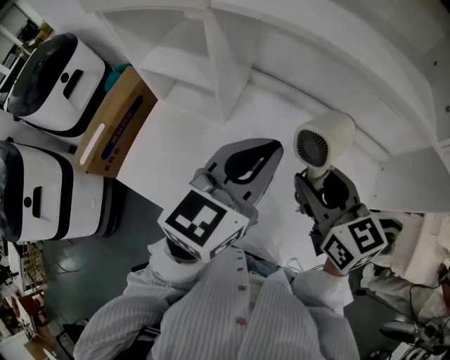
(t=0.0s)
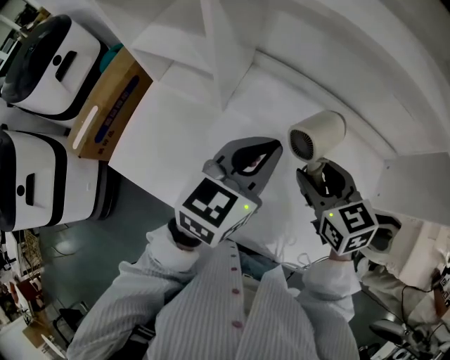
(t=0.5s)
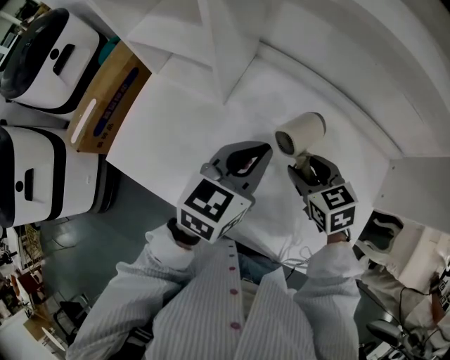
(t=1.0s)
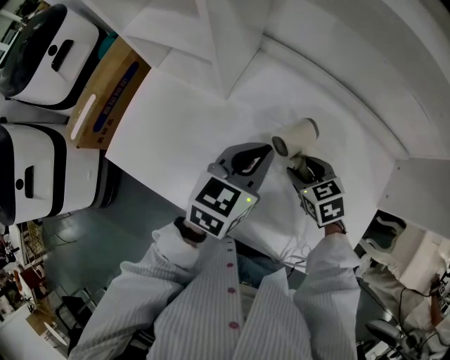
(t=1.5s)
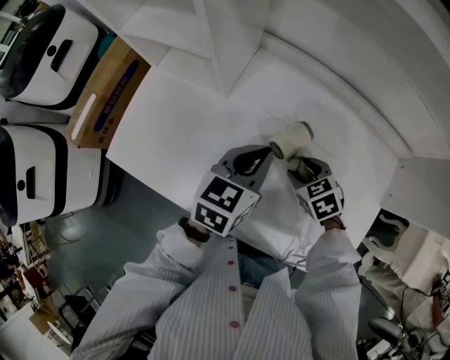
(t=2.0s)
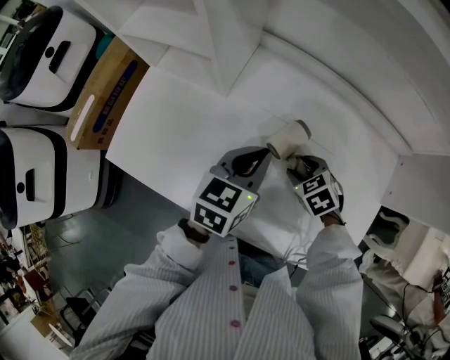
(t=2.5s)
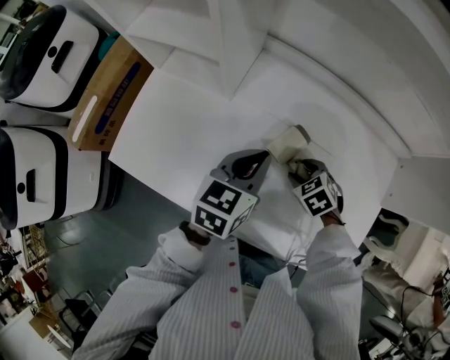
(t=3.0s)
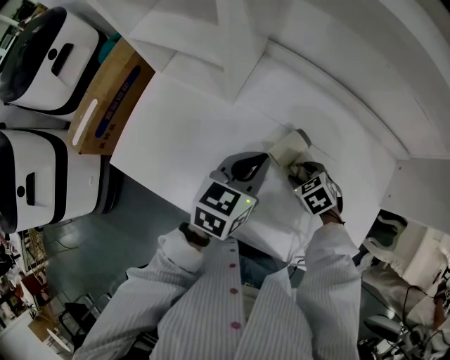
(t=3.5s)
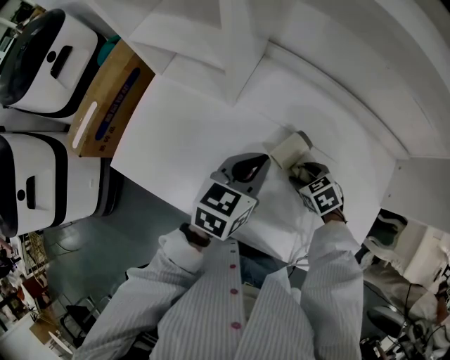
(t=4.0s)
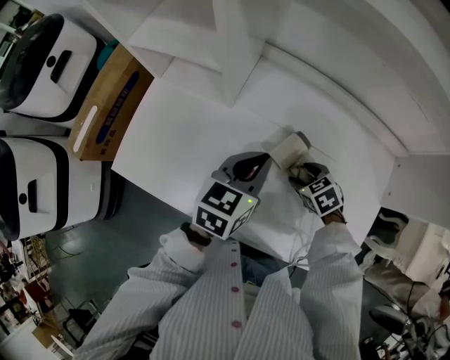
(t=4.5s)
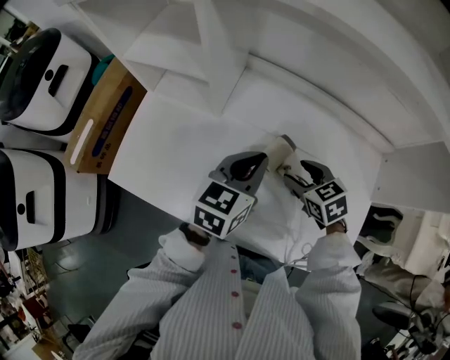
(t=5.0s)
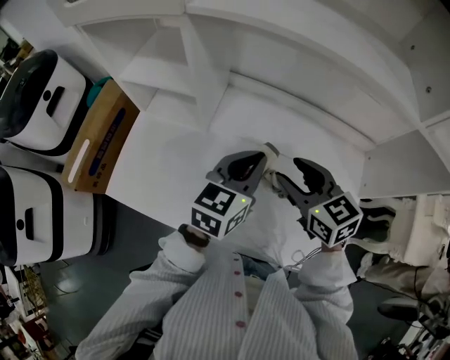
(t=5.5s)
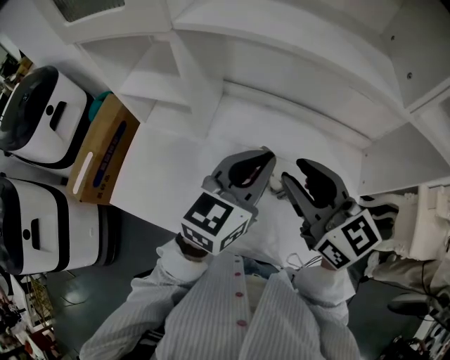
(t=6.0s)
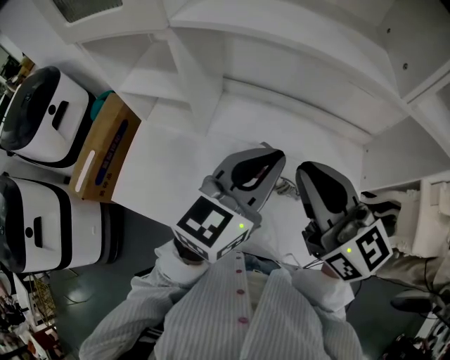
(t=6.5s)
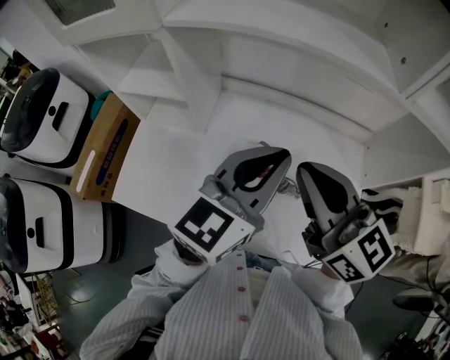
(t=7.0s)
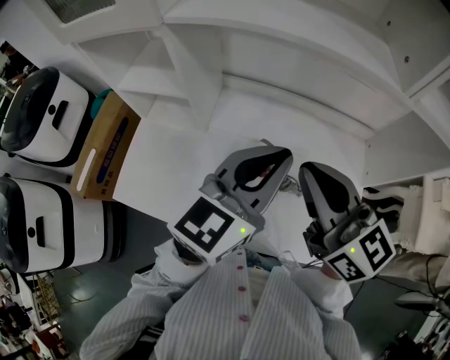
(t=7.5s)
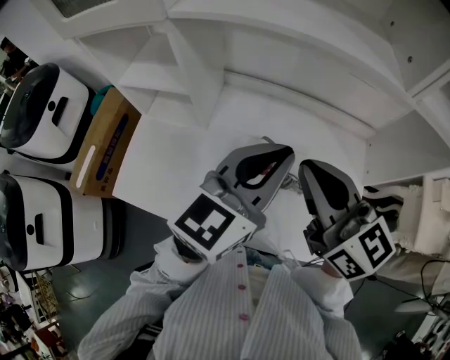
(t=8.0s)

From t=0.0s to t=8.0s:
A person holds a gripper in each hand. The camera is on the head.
From t=0.0s to t=2.0s: The grippers both shift downward by some 25 cm. The right gripper tips its fingers downward by approximately 40 degrees; the left gripper changes its angle by some 20 degrees.
From t=2.0s to t=4.0s: The grippers move only a little.
From t=4.0s to t=6.0s: The right gripper goes approximately 35 cm upward, and tips its fingers upward by about 60 degrees, while the left gripper shifts approximately 20 cm upward, and swivels approximately 30 degrees.
From t=6.0s to t=8.0s: The left gripper shifts about 5 cm upward. Meanwhile the right gripper closes its fingers.

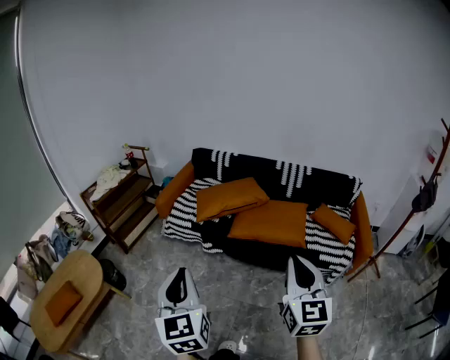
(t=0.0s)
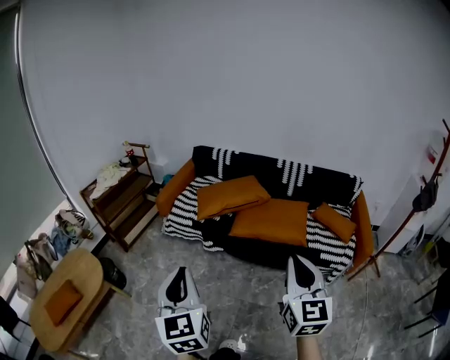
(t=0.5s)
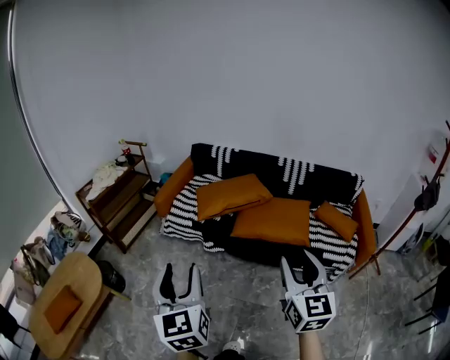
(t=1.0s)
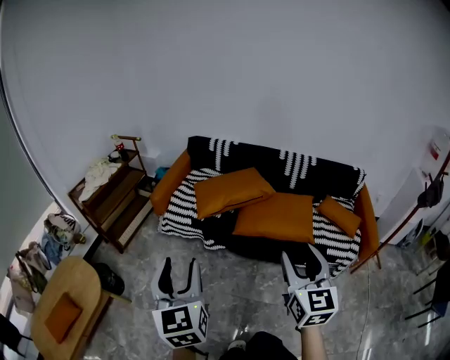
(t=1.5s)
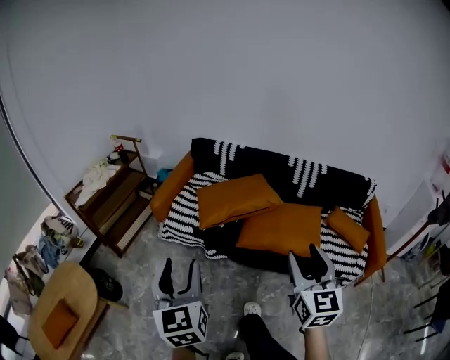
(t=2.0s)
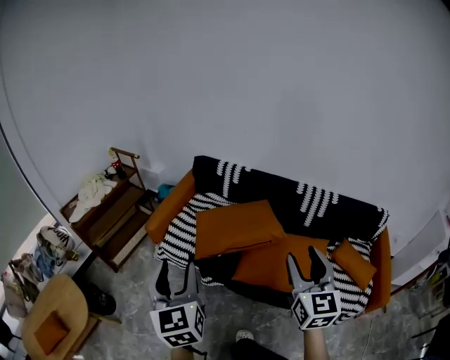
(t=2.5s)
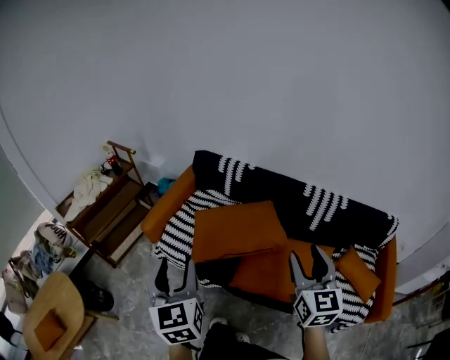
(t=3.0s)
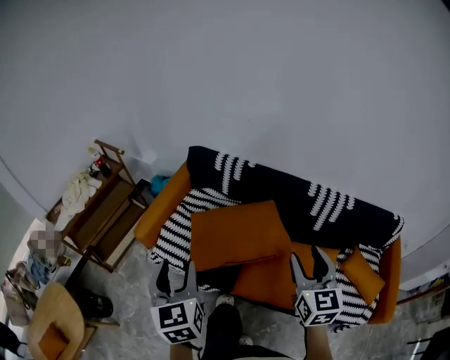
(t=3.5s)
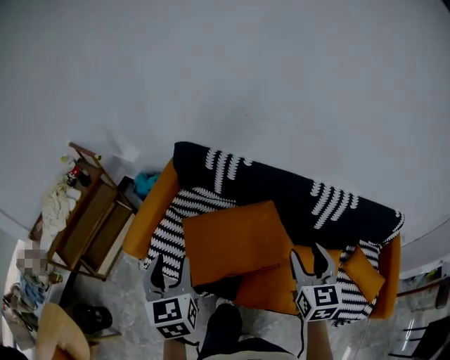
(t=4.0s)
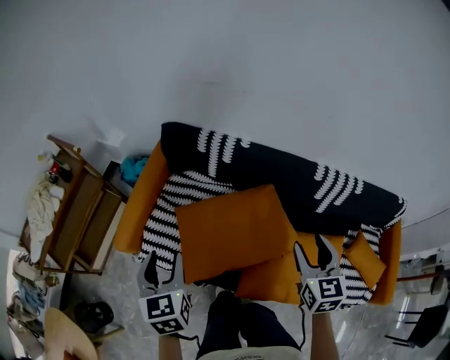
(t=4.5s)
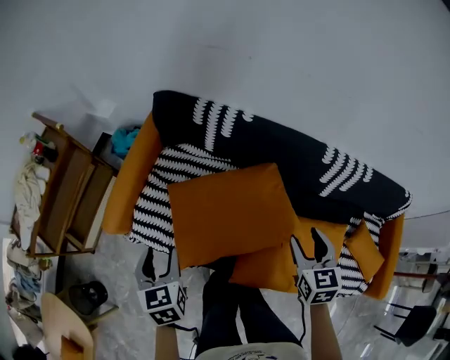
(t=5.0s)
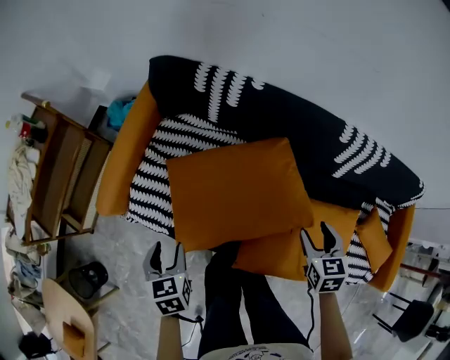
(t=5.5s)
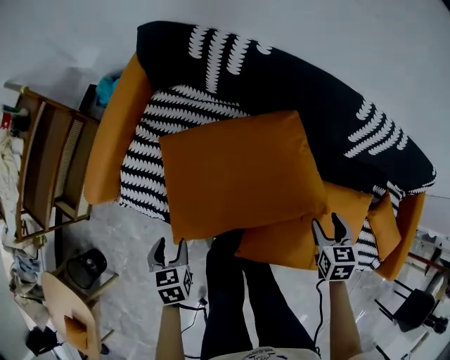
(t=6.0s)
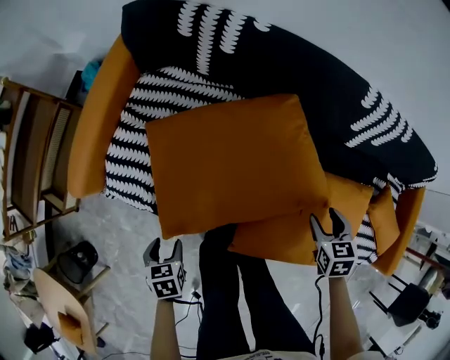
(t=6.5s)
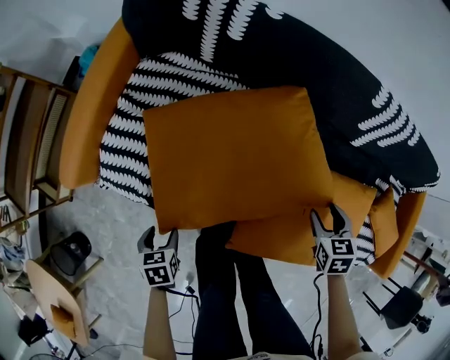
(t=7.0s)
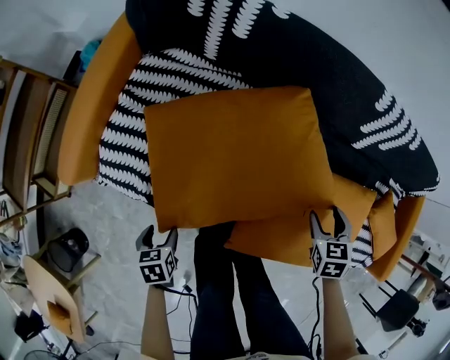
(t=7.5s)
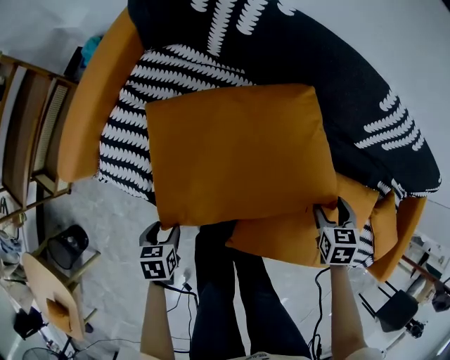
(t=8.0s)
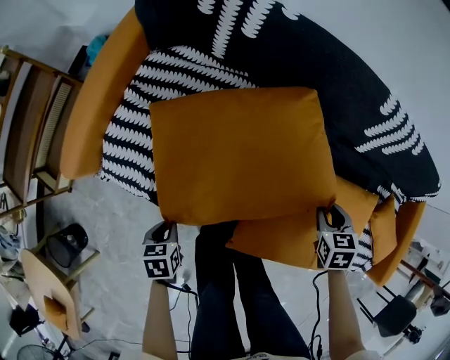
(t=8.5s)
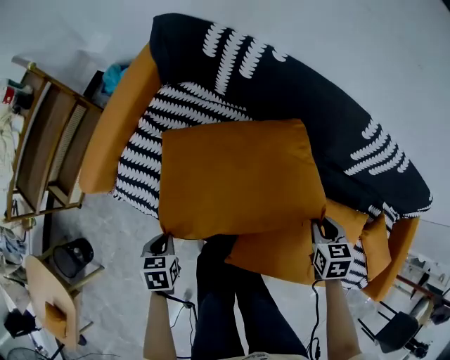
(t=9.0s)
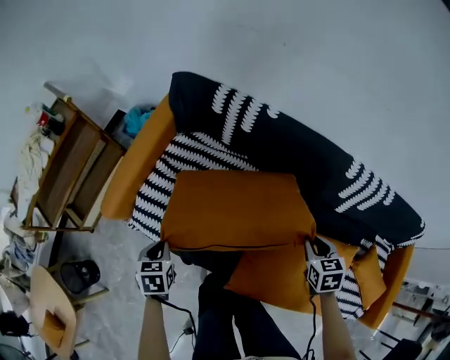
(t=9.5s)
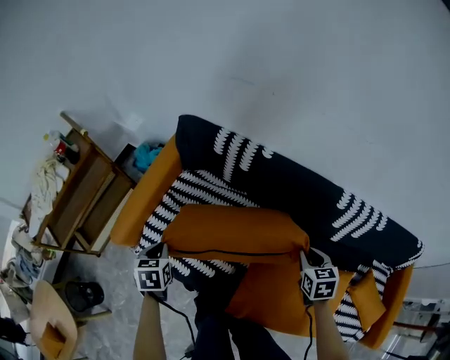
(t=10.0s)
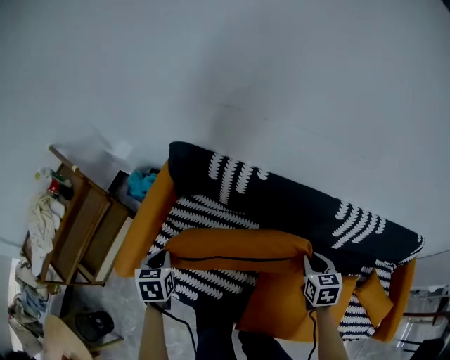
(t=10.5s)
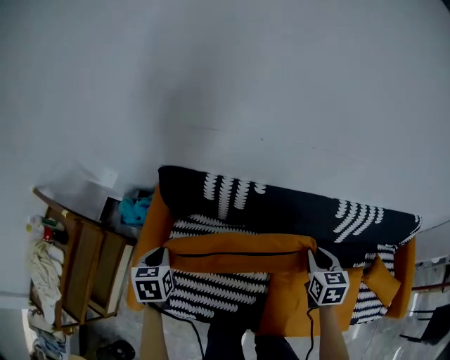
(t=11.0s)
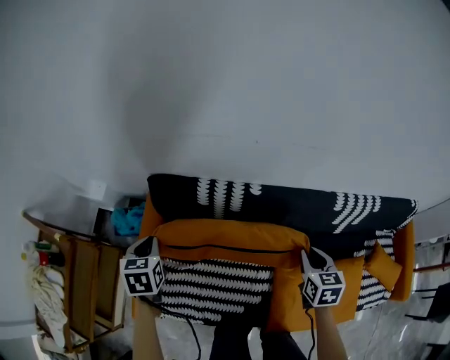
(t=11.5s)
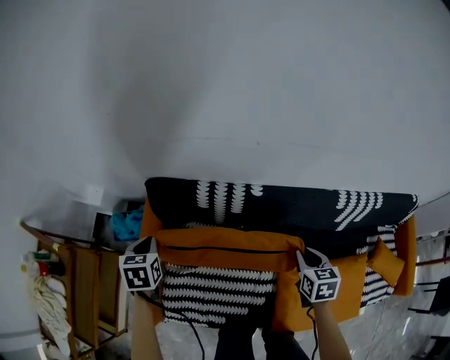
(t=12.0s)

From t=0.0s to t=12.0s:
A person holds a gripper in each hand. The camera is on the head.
From t=0.0s to t=2.0s: The two grippers go about 25 cm forward. The left gripper opens up; the right gripper opens up.
From t=2.0s to t=4.0s: Both grippers are carried forward, some 50 cm.
From t=4.0s to t=6.0s: The two grippers go about 35 cm downward. The left gripper tips its fingers downward by about 40 degrees; the right gripper tips its fingers downward by approximately 40 degrees.
From t=6.0s to t=8.0s: The right gripper is displaced downward by some 5 cm, while the left gripper shifts some 10 cm downward.
From t=8.0s to t=10.0s: The right gripper heads upward, covering roughly 15 cm, and closes its fingers. Meanwhile the left gripper heads upward, covering approximately 25 cm, swivels approximately 20 degrees, and closes its fingers.
From t=10.0s to t=12.0s: The right gripper shifts approximately 15 cm forward and to the left, and swivels roughly 20 degrees, while the left gripper travels forward by about 30 cm, and turns by about 20 degrees.

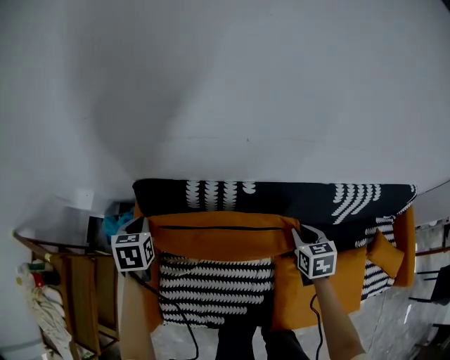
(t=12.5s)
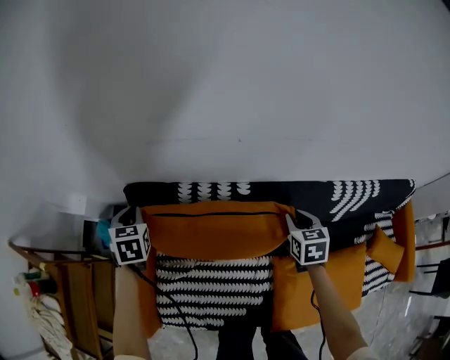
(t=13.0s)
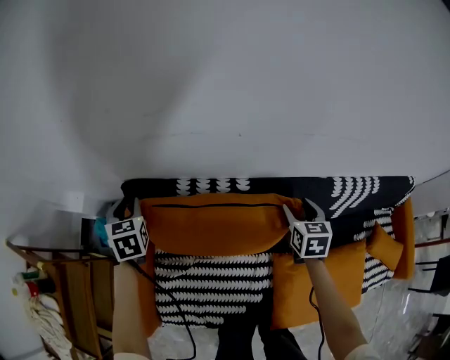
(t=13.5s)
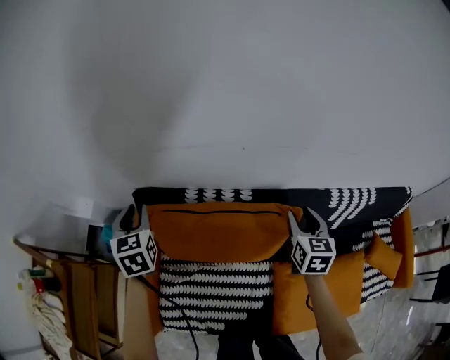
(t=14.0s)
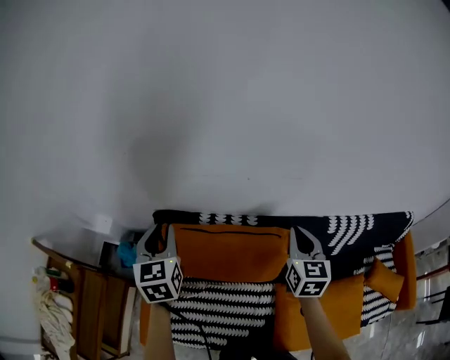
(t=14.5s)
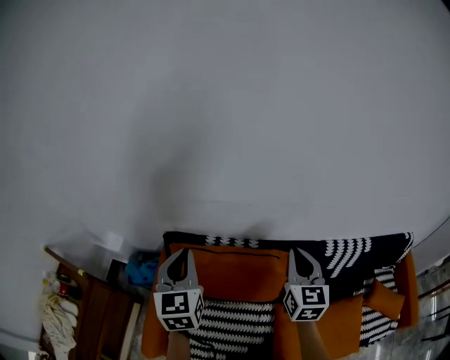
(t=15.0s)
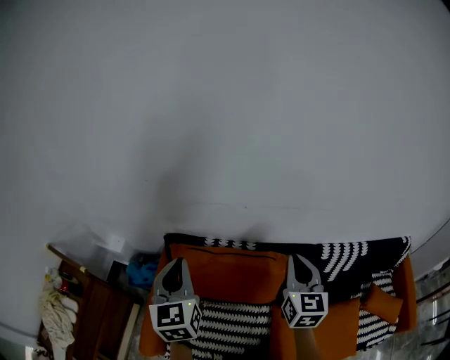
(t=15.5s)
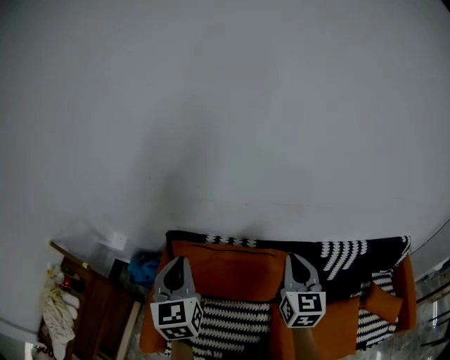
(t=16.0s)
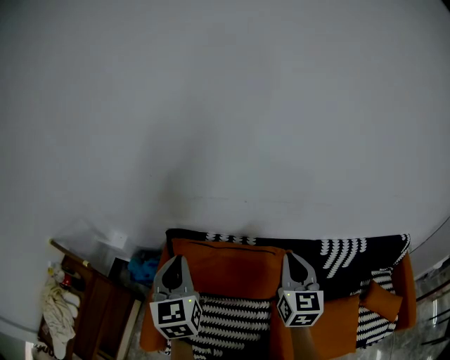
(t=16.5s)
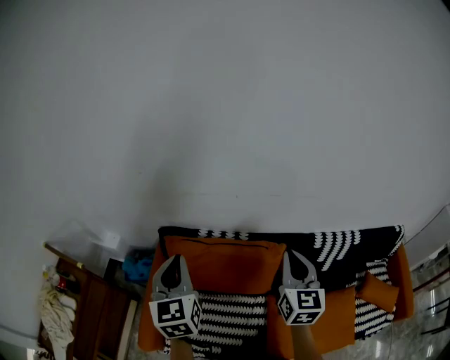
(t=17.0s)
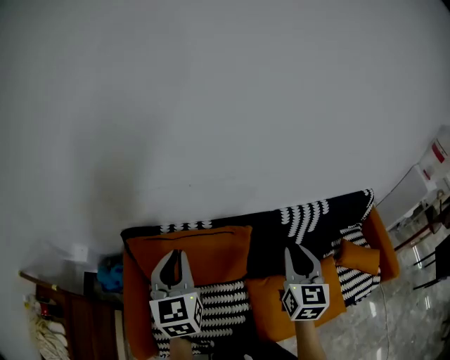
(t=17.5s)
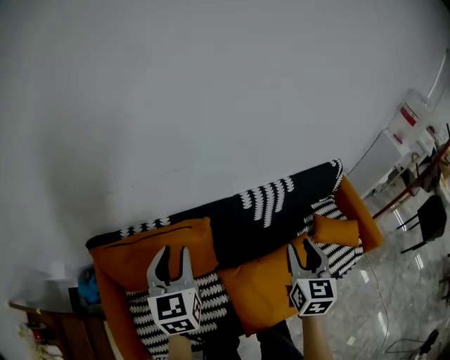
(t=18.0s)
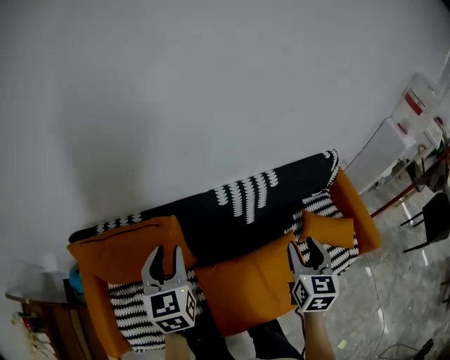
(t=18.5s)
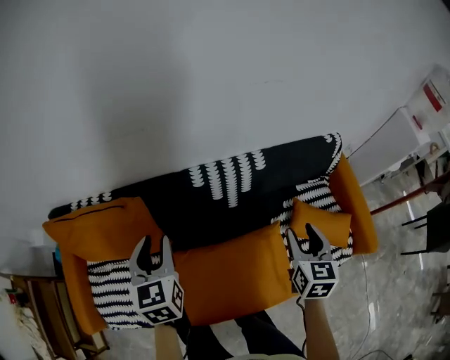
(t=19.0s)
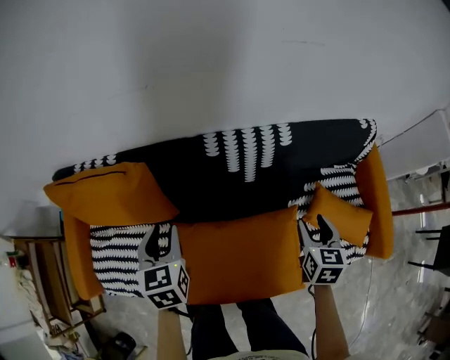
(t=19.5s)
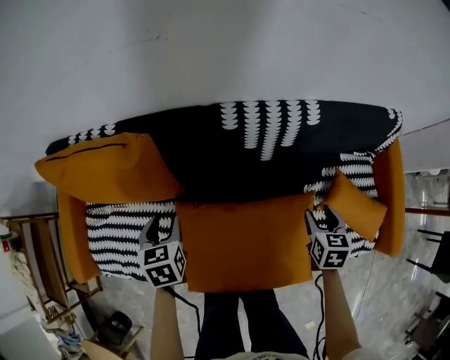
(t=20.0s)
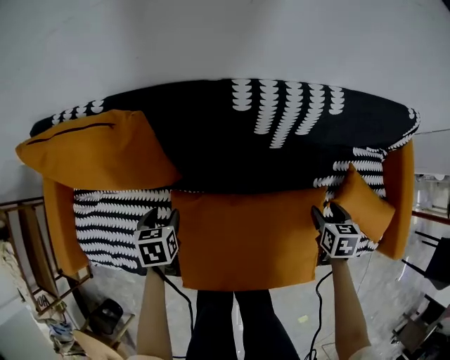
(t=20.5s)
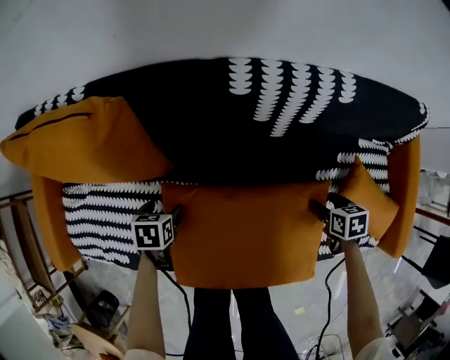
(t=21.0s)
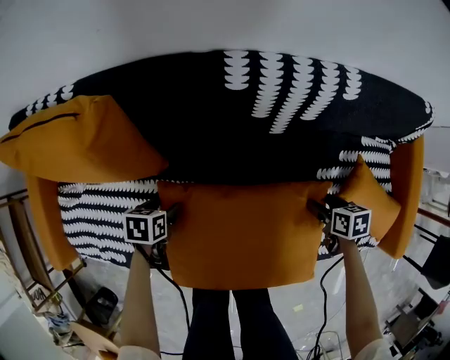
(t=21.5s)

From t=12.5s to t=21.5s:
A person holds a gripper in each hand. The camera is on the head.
From t=12.5s to t=14.5s: The grippers both shift upward by approximately 20 cm. The right gripper changes its angle by some 30 degrees, and opens, then closes once more. Meanwhile the left gripper turns by roughly 30 degrees.
From t=14.5s to t=17.0s: The left gripper heads backward, upward and to the right, covering roughly 20 cm. The right gripper moves upward and backward, approximately 15 cm.
From t=17.0s to t=19.5s: The two grippers travel together, roughly 50 cm. The right gripper points its fingers roughly 30 degrees further downward, and opens its fingers. Meanwhile the left gripper rotates about 30 degrees, and opens.
From t=19.5s to t=21.5s: The grippers both shift downward by approximately 30 cm. The right gripper turns by some 40 degrees; the left gripper tips its fingers downward by approximately 30 degrees, and opens its fingers.
